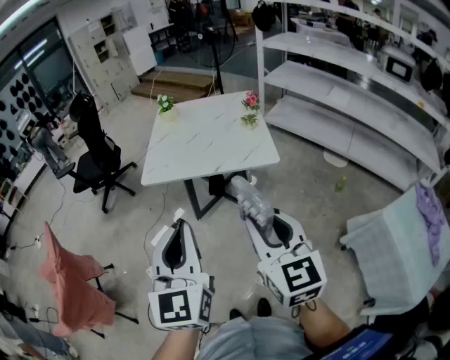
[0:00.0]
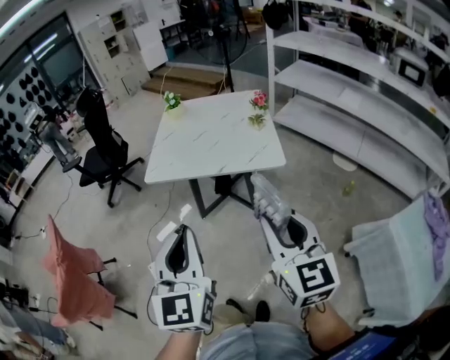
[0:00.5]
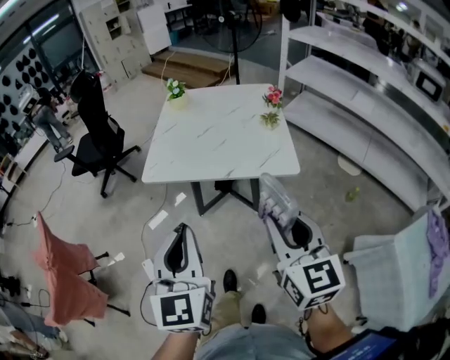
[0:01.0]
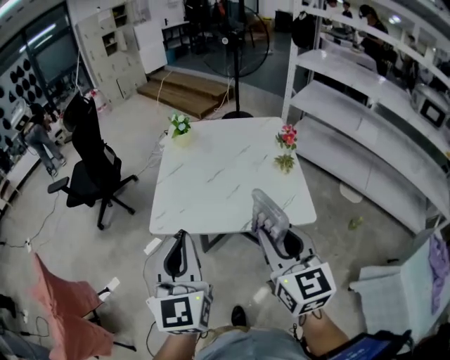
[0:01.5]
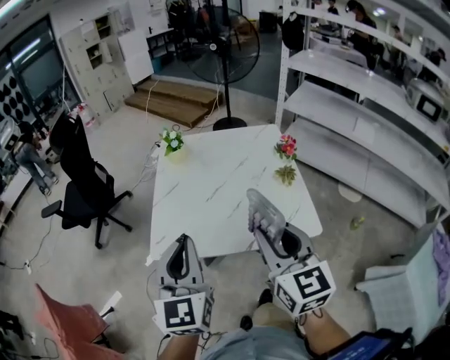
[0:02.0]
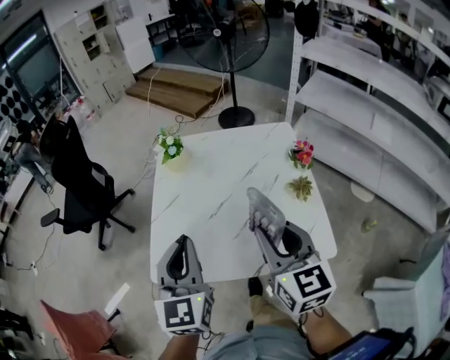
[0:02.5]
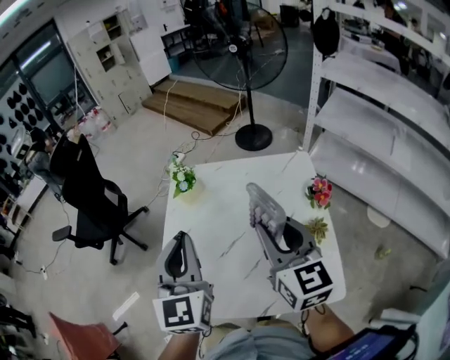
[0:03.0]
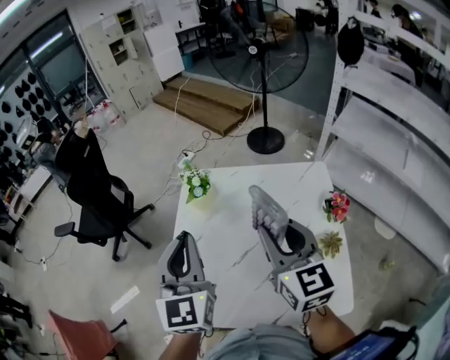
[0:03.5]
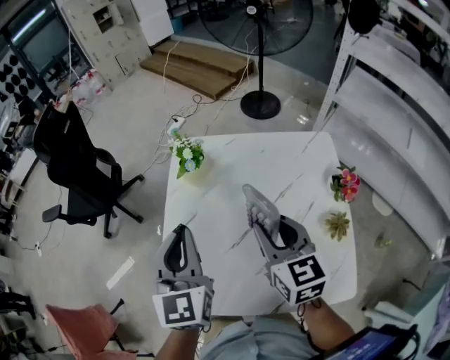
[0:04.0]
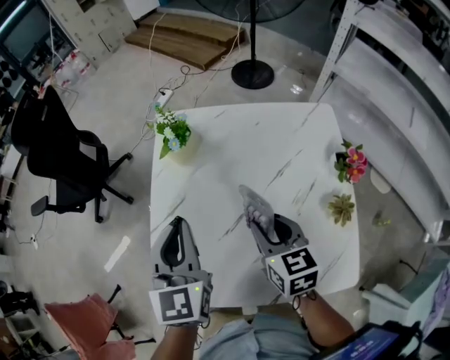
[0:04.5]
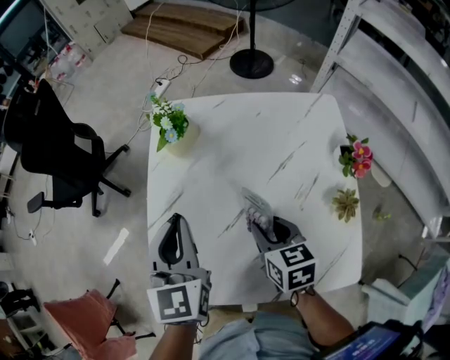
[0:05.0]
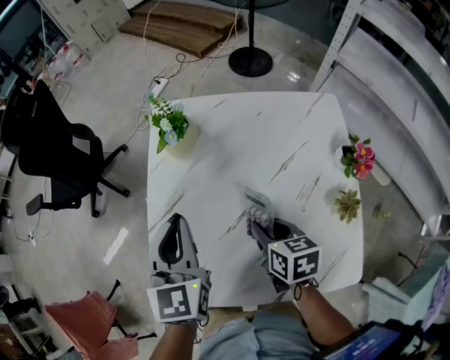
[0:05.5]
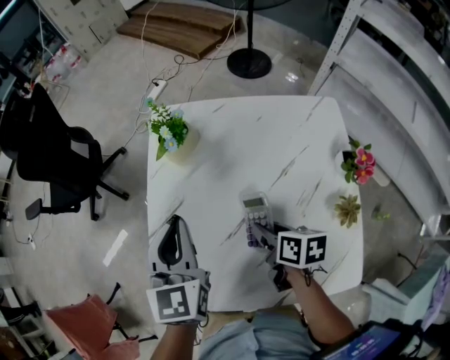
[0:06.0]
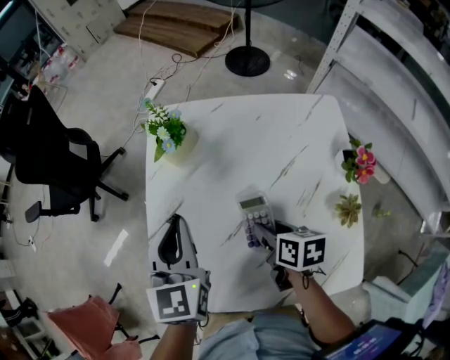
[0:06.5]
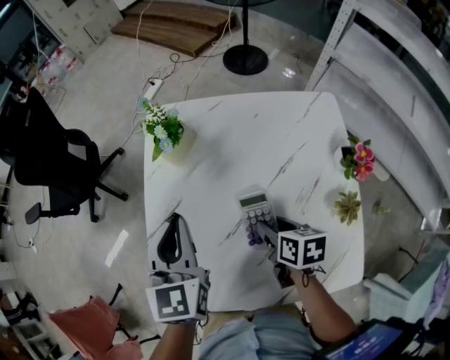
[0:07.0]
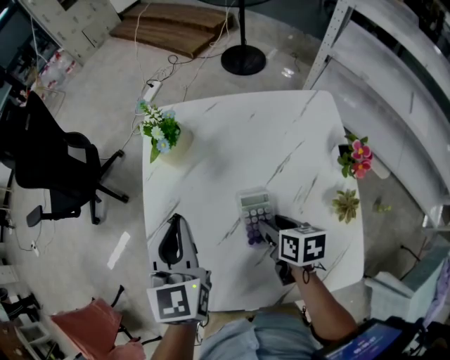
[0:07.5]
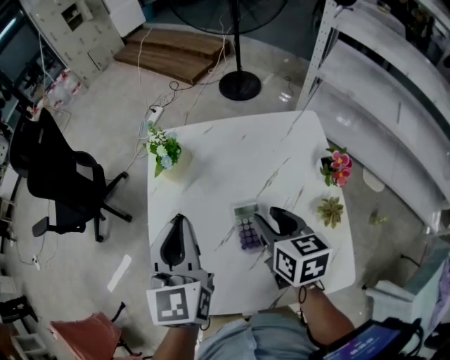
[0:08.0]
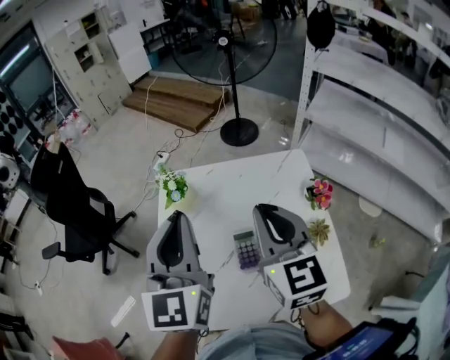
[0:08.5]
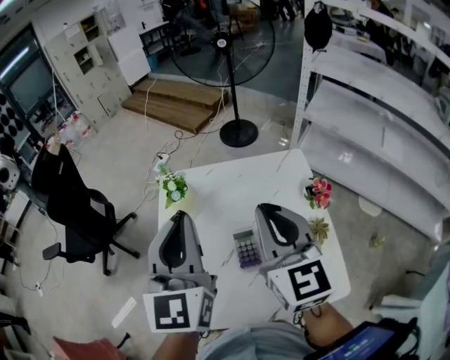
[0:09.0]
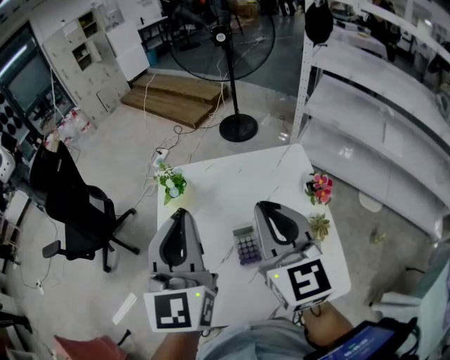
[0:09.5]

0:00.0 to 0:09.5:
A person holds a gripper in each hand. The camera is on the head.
0:00.0 to 0:02.0: Both grippers move forward, some 35 cm.
0:02.0 to 0:04.0: The grippers both shift forward by some 30 cm.
0:04.0 to 0:05.5: The left gripper is displaced downward by some 10 cm. The right gripper shifts roughly 15 cm downward, and turns by some 30 degrees.
0:05.5 to 0:07.5: The right gripper shifts by approximately 5 cm.
0:07.5 to 0:09.5: The right gripper travels upward by some 35 cm, tilts its fingers about 50 degrees upward, and closes its fingers. The left gripper travels upward by roughly 20 cm, and changes its angle by about 20 degrees.

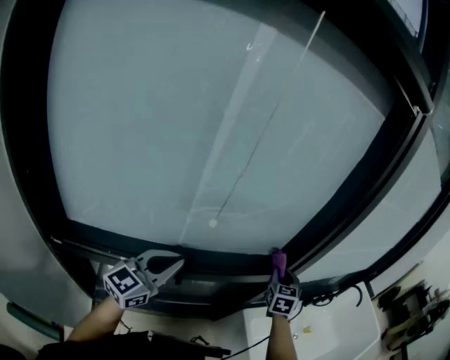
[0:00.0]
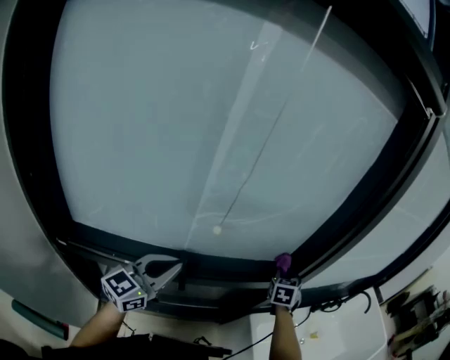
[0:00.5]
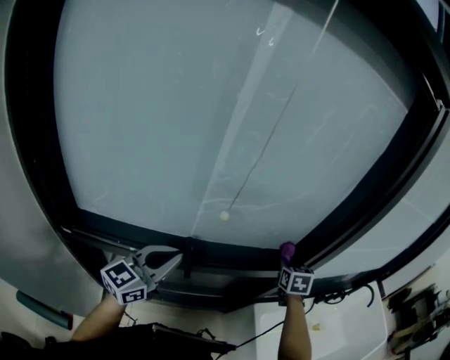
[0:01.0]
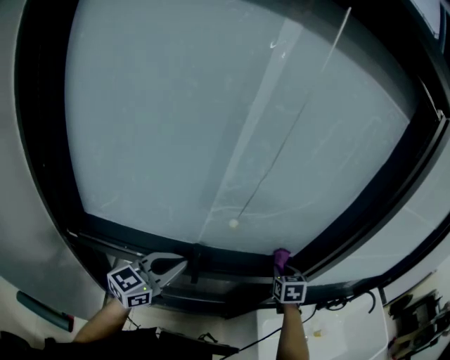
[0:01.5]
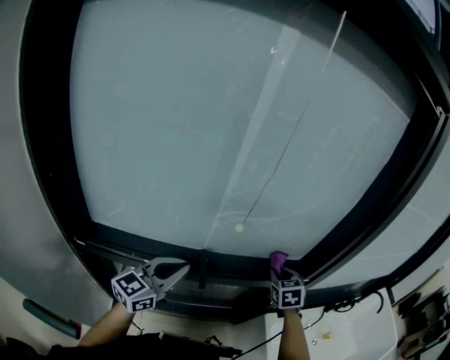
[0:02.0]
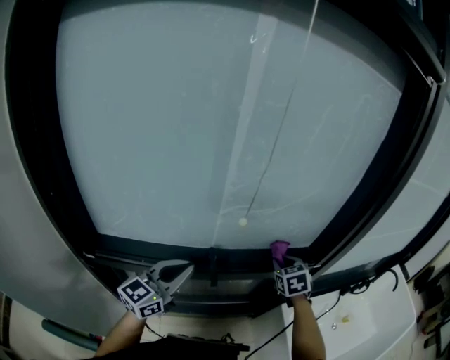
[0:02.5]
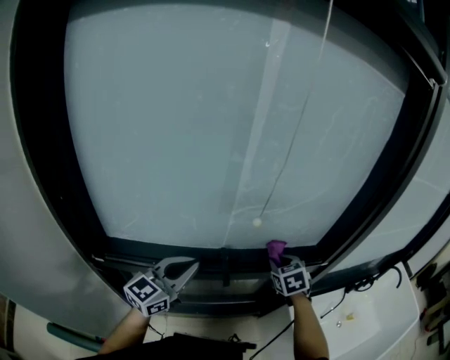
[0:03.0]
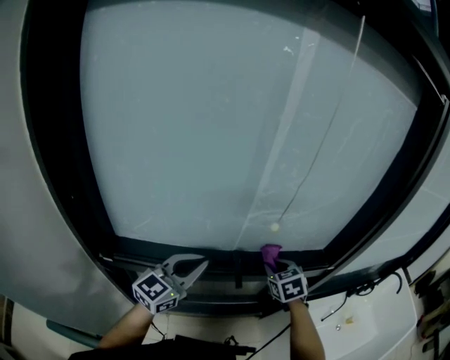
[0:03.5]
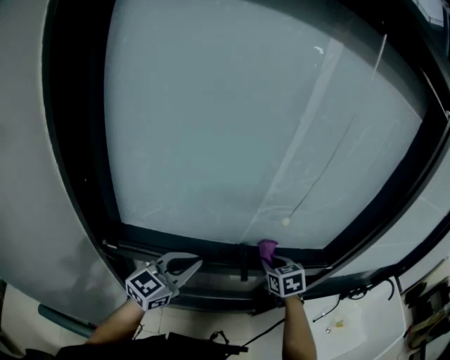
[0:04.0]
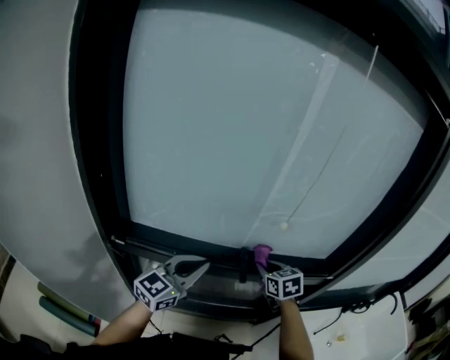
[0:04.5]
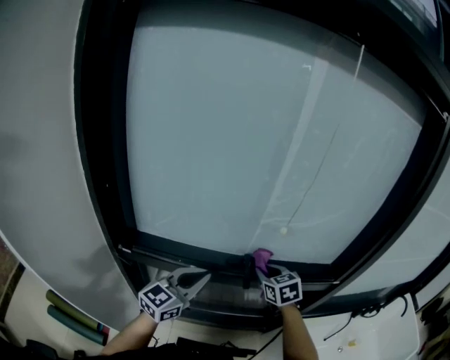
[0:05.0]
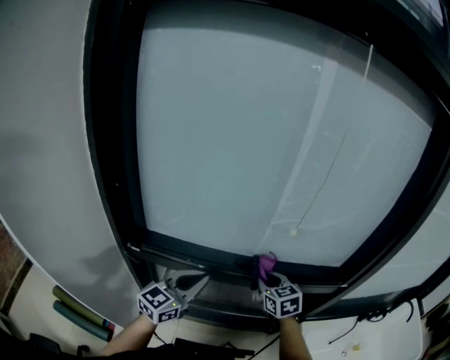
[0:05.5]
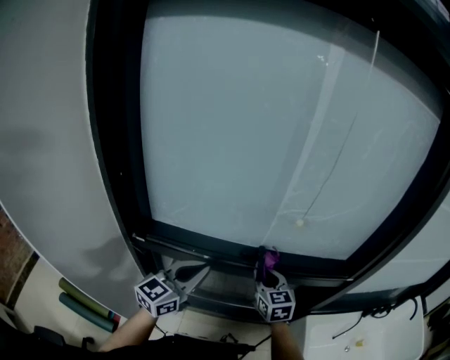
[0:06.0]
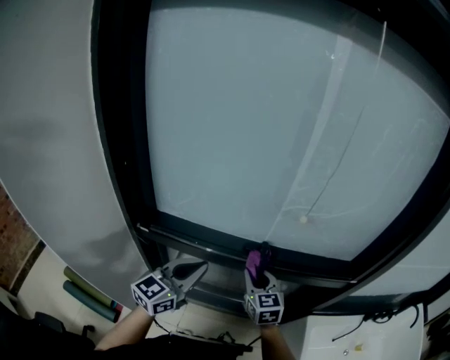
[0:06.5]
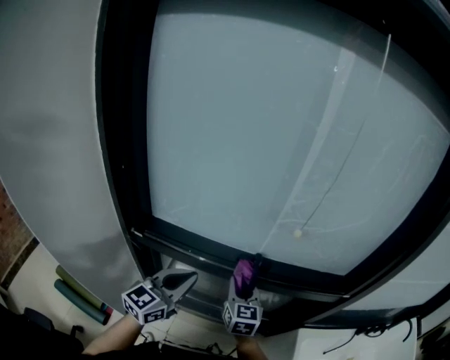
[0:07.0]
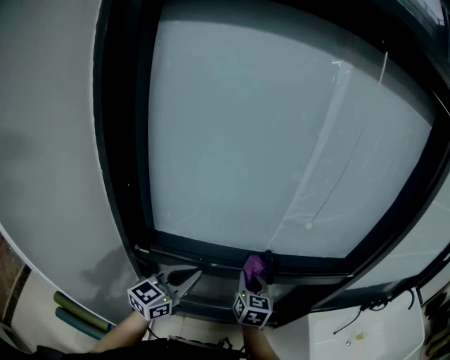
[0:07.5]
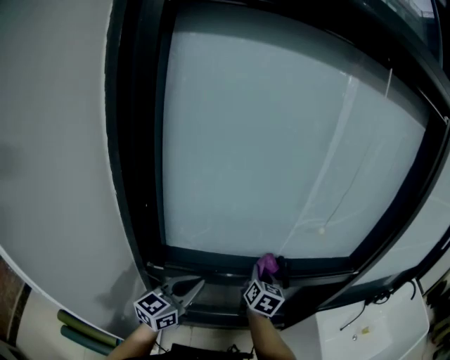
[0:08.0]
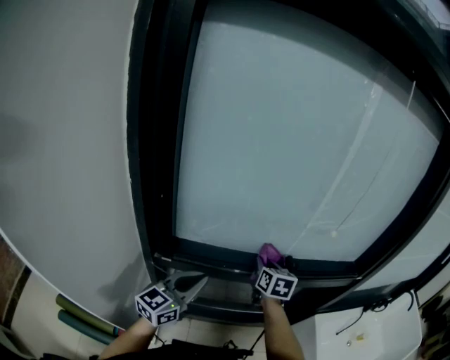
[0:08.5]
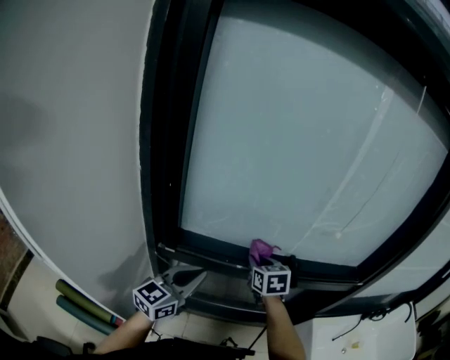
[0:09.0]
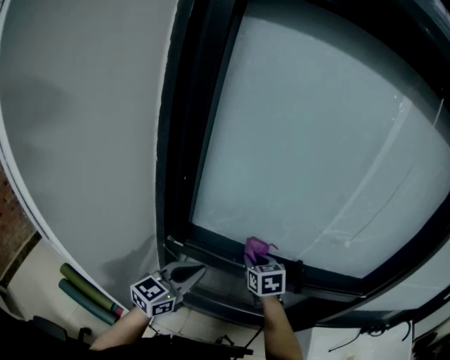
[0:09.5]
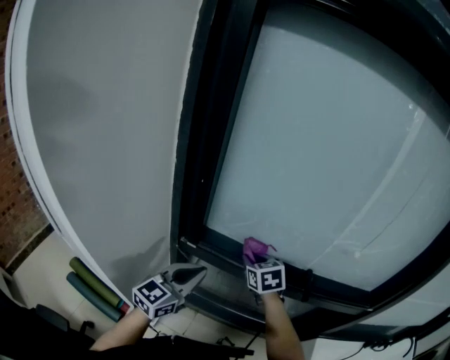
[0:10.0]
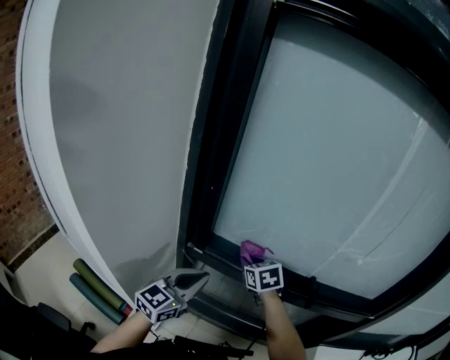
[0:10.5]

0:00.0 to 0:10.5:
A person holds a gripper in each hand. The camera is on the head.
0:00.0 to 0:02.0: The left gripper ends up roughly 5 cm from where it was. Meanwhile the right gripper goes roughly 10 cm to the left and downward, and changes its angle by about 20 degrees.
0:02.0 to 0:04.0: The right gripper goes roughly 15 cm to the left and backward, while the left gripper travels to the left by about 5 cm.
0:04.0 to 0:06.5: The right gripper heads to the left and backward, covering about 15 cm, and rotates approximately 30 degrees. Meanwhile the left gripper shifts approximately 5 cm backward.
0:06.5 to 0:08.5: The left gripper shifts roughly 10 cm to the left, while the right gripper travels to the left and forward by approximately 10 cm, and rotates about 30 degrees.
0:08.5 to 0:10.5: The right gripper travels to the left by some 15 cm, and changes its angle by approximately 40 degrees; the left gripper moves to the left, roughly 5 cm.

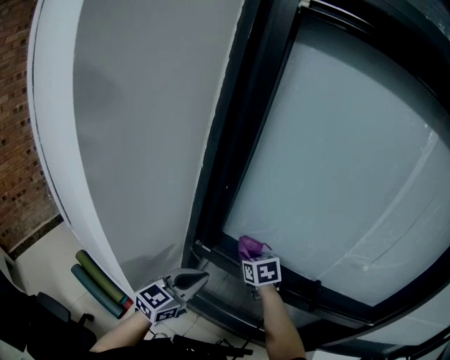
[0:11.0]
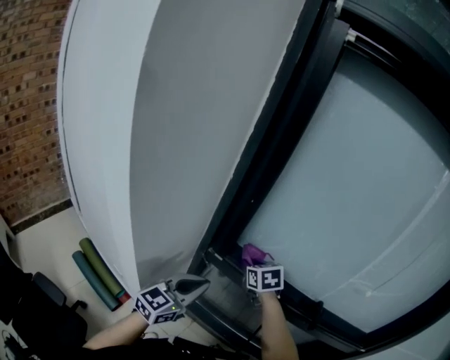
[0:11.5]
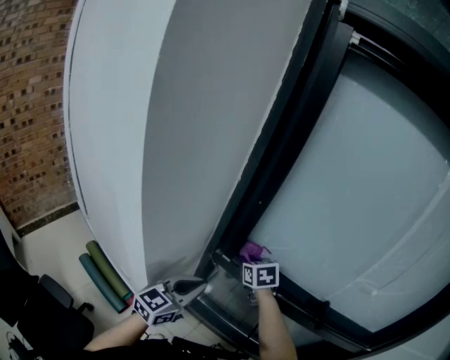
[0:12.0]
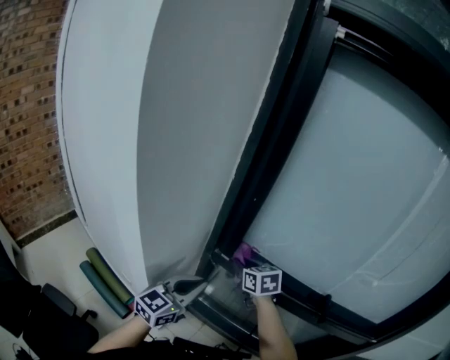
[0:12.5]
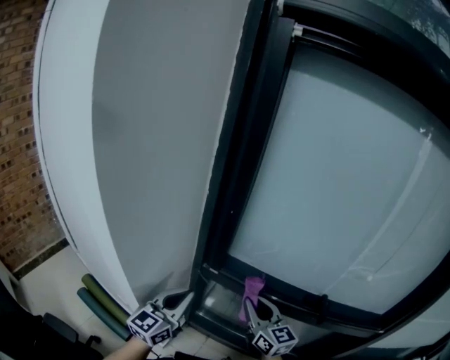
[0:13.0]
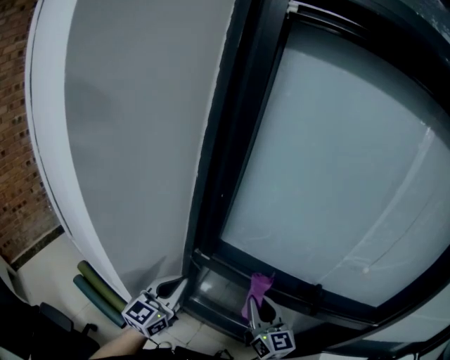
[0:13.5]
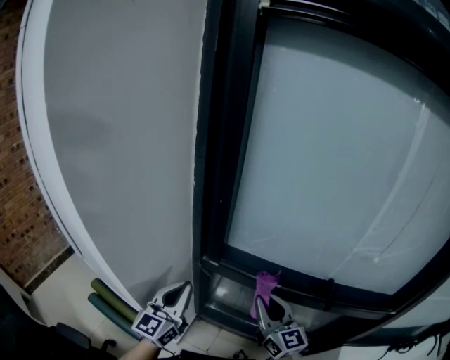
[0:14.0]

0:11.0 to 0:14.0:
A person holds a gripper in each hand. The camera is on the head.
0:11.0 to 0:12.5: The left gripper travels to the left by some 5 cm. The right gripper goes some 10 cm to the left.
0:12.5 to 0:14.0: The right gripper is displaced backward and to the right by roughly 20 cm, and points its fingers roughly 40 degrees further upward.

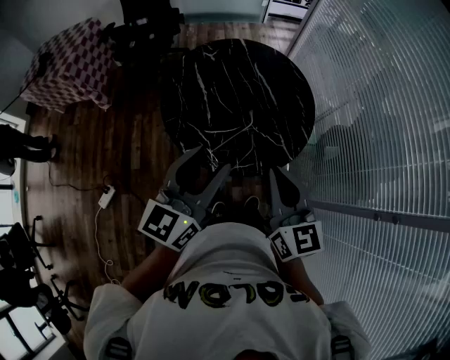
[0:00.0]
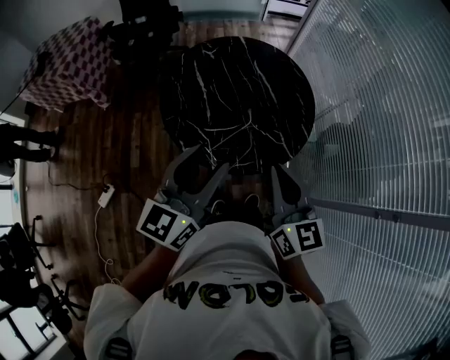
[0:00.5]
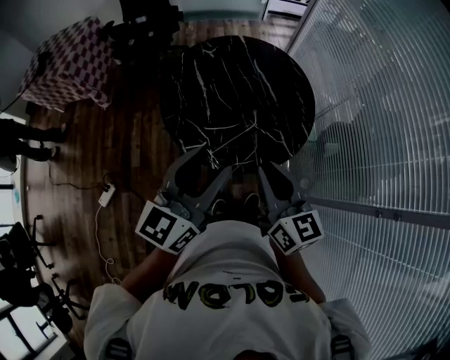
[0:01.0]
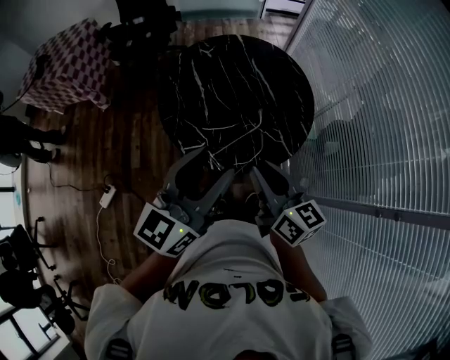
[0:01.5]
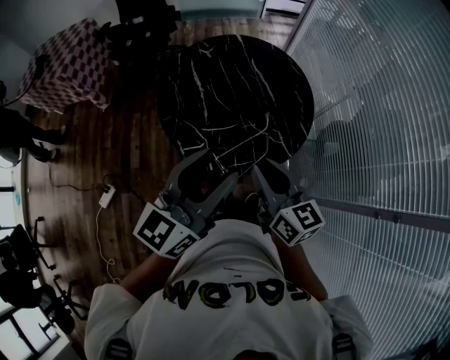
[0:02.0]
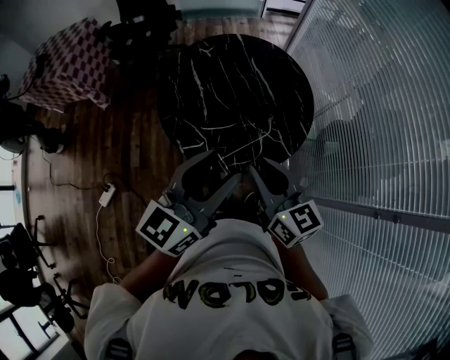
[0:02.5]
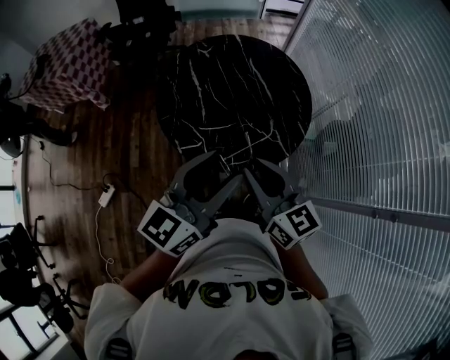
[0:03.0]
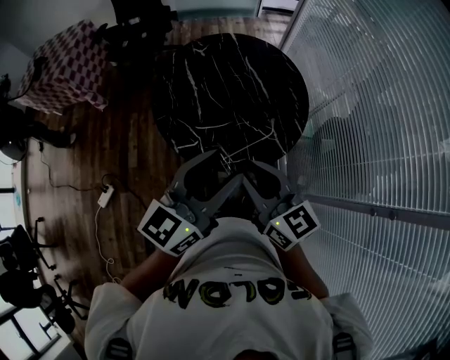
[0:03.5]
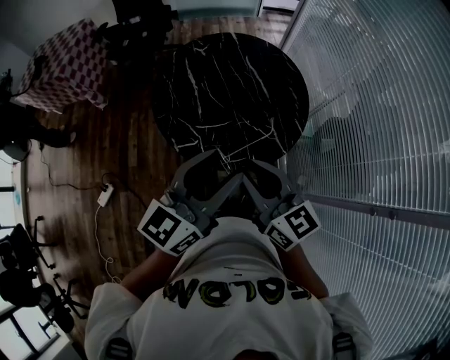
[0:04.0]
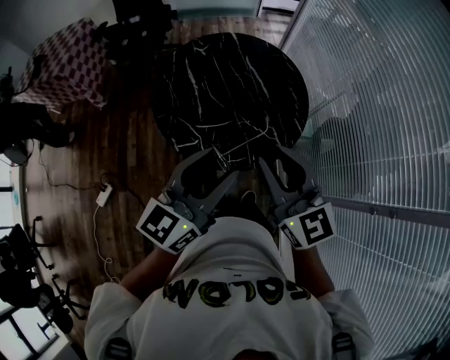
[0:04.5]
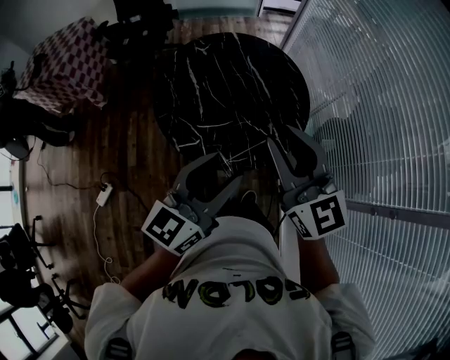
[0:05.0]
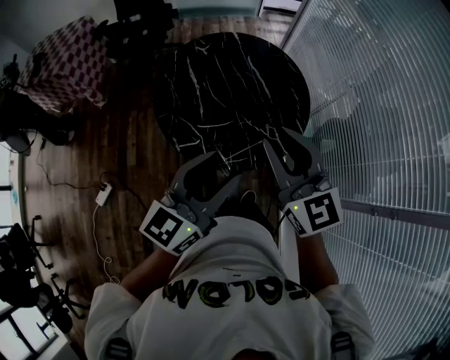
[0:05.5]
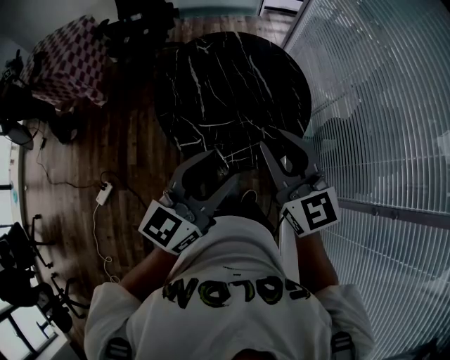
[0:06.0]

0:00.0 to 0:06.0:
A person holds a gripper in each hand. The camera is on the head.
0:00.0 to 0:02.0: The right gripper opens its fingers.
0:02.0 to 0:04.0: The grippers make only small movements.
0:04.0 to 0:06.0: The right gripper goes some 5 cm upward and forward, and turns by approximately 20 degrees.
